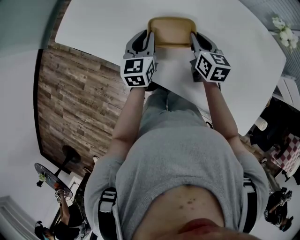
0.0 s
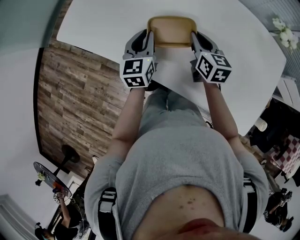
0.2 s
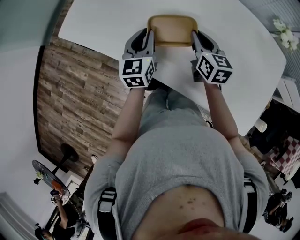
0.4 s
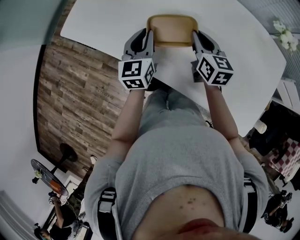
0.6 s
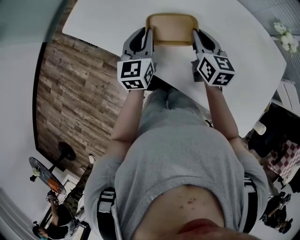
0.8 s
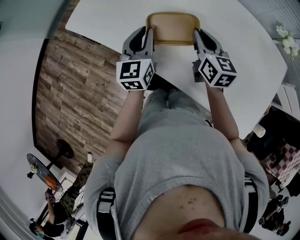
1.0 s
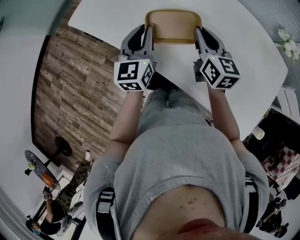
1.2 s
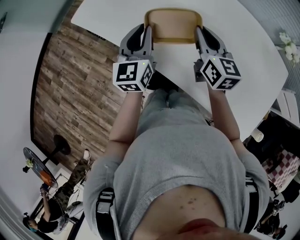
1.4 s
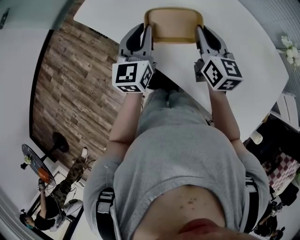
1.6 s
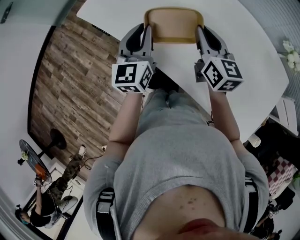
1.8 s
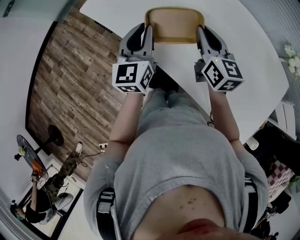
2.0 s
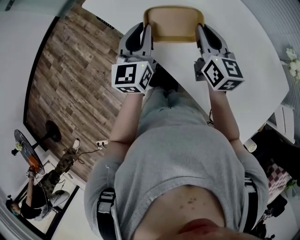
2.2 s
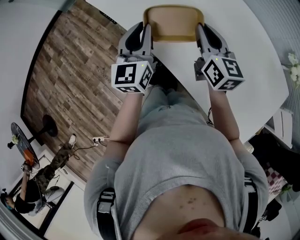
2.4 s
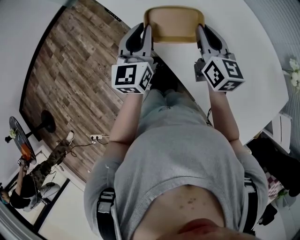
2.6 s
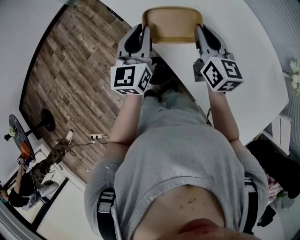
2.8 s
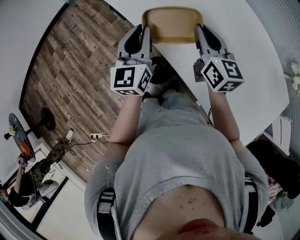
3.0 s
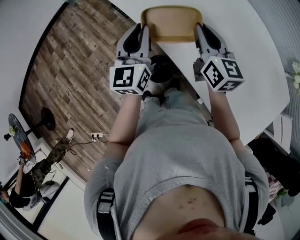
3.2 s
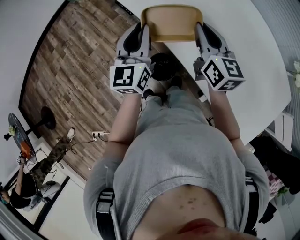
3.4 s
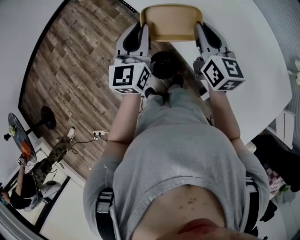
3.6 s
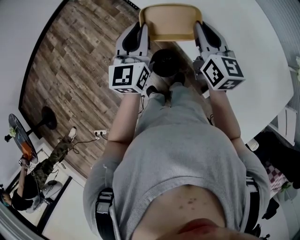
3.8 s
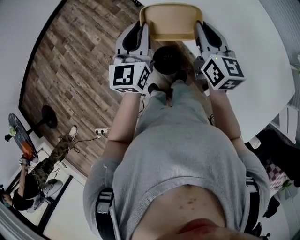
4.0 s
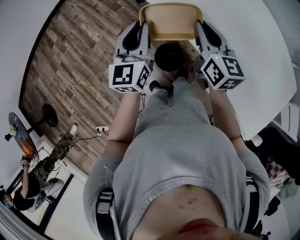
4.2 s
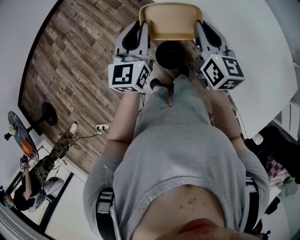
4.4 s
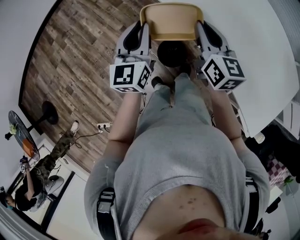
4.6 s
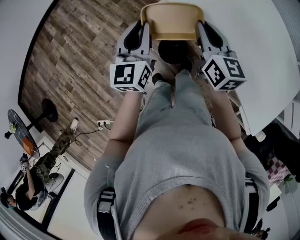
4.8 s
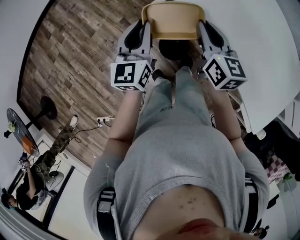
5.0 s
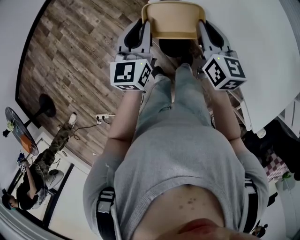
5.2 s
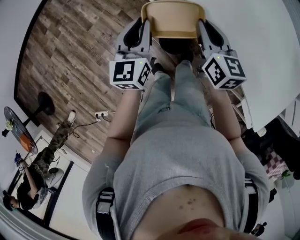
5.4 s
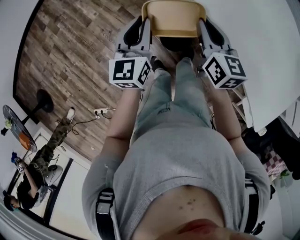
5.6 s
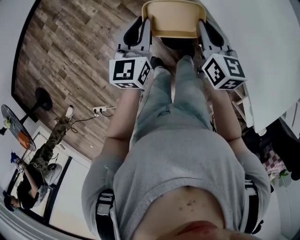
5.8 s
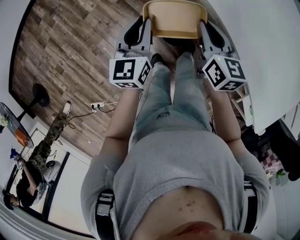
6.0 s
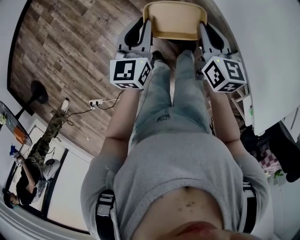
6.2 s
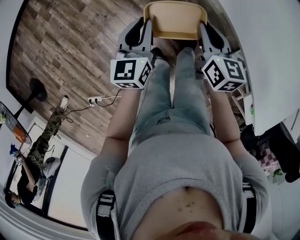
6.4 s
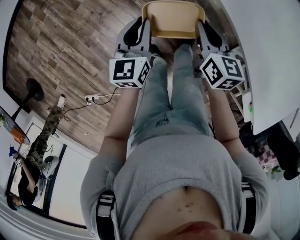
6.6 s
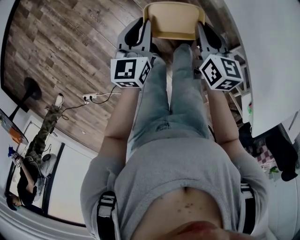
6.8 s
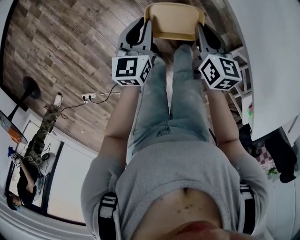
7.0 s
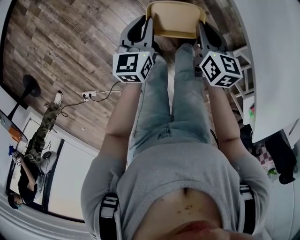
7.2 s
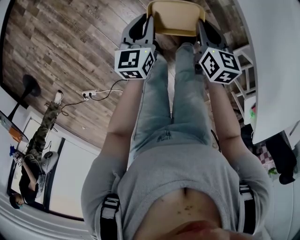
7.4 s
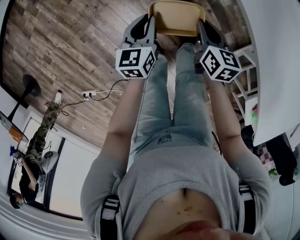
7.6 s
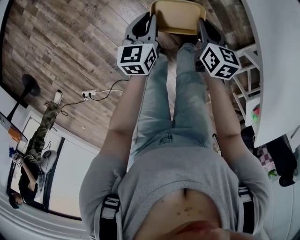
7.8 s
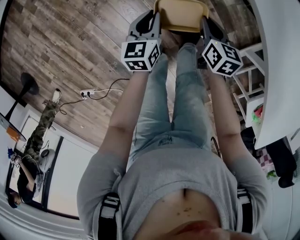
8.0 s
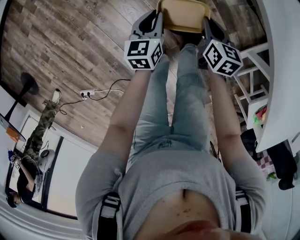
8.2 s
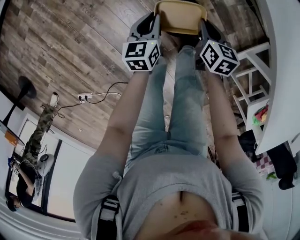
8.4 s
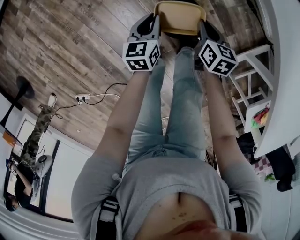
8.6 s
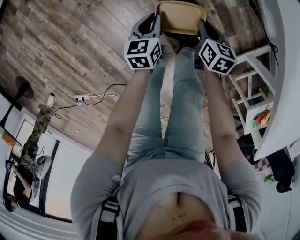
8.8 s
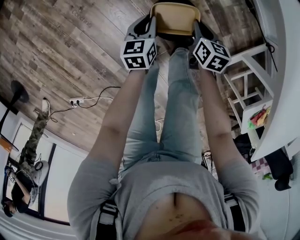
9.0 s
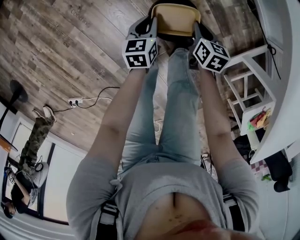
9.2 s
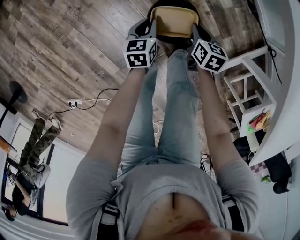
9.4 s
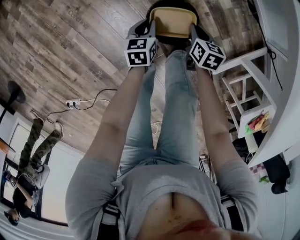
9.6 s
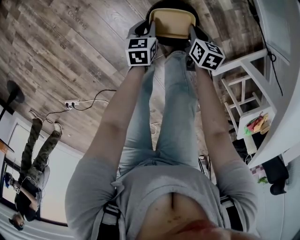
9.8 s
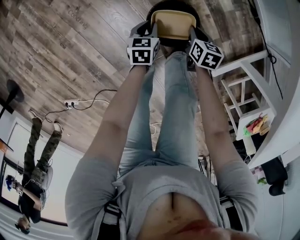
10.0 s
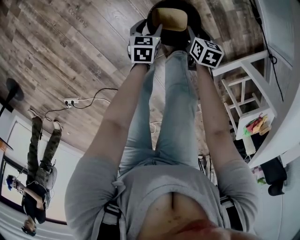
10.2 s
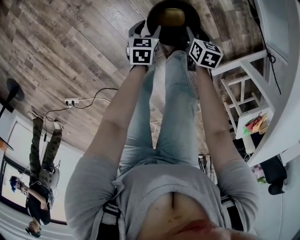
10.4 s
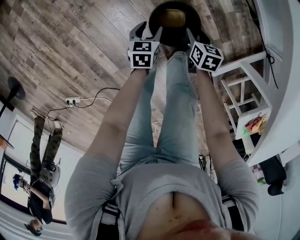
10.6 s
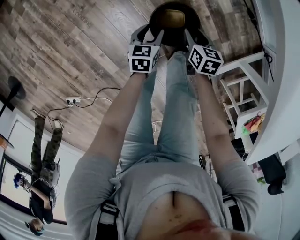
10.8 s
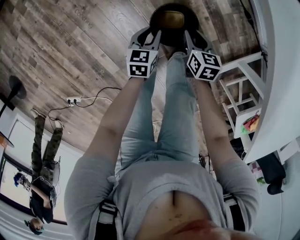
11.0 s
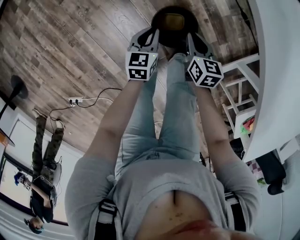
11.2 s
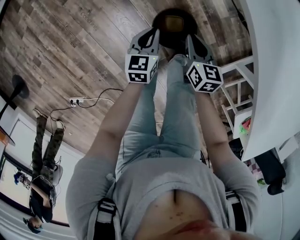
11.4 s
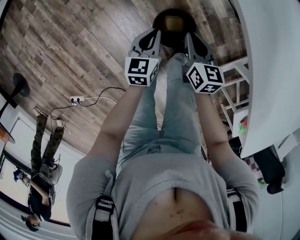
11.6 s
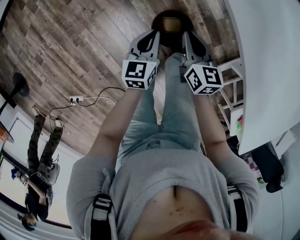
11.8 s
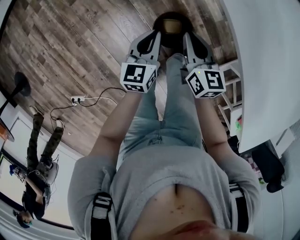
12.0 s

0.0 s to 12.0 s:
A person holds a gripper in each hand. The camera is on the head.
0.0 to 1.6 s: Both grippers move upward and to the left, some 15 cm.
1.6 to 3.0 s: Both grippers travel together to the left, roughly 10 cm.
3.0 to 4.4 s: Both grippers move to the left and backward, roughly 15 cm.
4.4 to 6.0 s: Both grippers move downward, approximately 15 cm.
6.0 to 7.6 s: Both grippers move downward, approximately 20 cm.
7.6 to 9.0 s: Both grippers move downward, approximately 15 cm.
9.0 to 10.4 s: The grippers both shift downward by approximately 10 cm. The left gripper opens up. The right gripper opens its fingers.
10.4 to 12.0 s: The grippers both shift upward by some 30 cm. The right gripper angles its fingers upward, by about 30 degrees, and closes up, while the left gripper swivels approximately 30 degrees, and closes up.

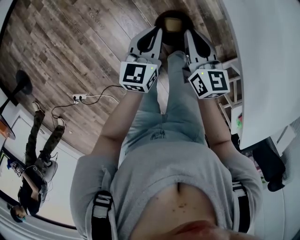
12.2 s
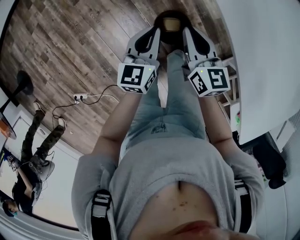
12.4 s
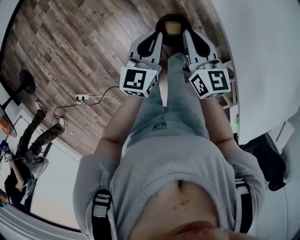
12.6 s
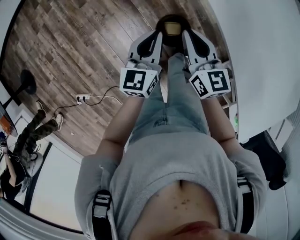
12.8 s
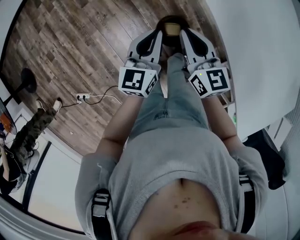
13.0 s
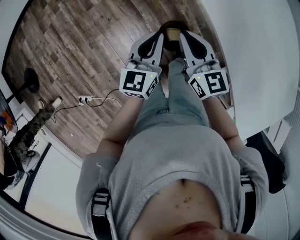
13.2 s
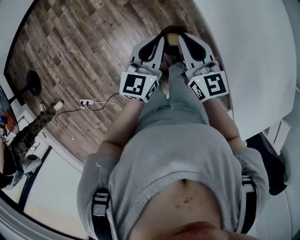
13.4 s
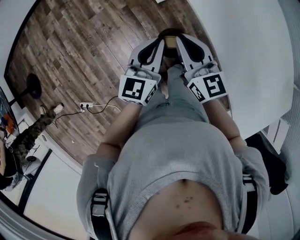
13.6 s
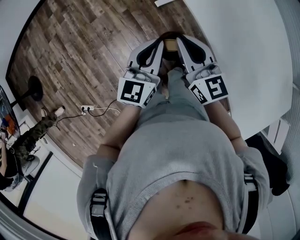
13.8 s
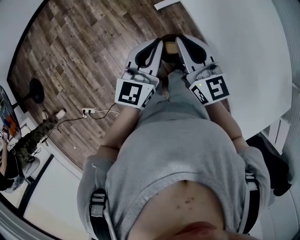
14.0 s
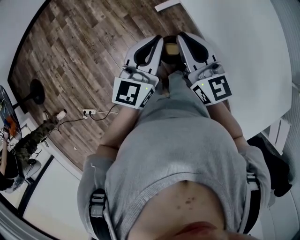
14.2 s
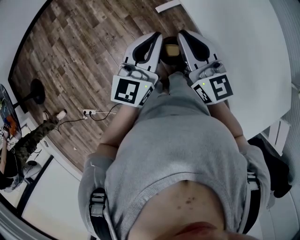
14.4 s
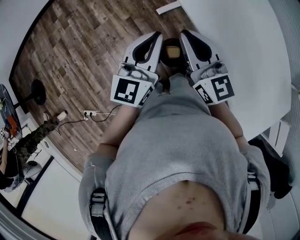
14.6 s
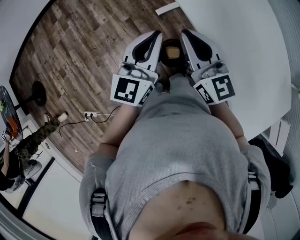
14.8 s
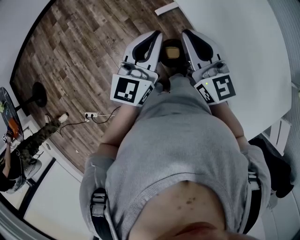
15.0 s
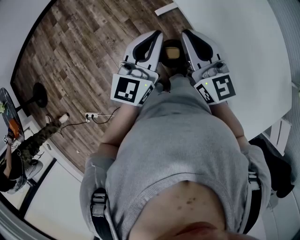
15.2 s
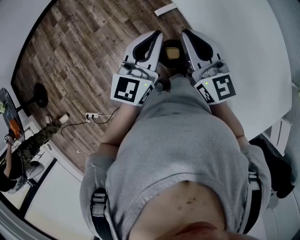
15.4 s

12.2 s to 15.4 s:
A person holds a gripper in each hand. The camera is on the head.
12.2 to 13.8 s: Both grippers move upward, roughly 20 cm. The right gripper changes its angle by roughly 20 degrees.
13.8 to 15.4 s: The grippers both shift upward by about 5 cm.

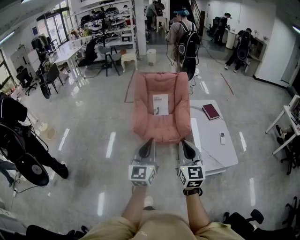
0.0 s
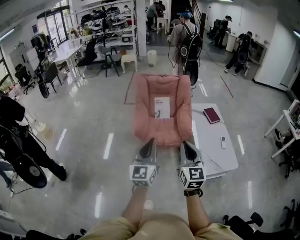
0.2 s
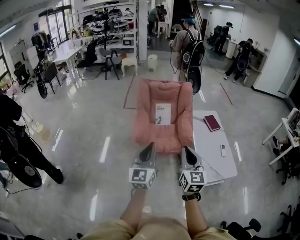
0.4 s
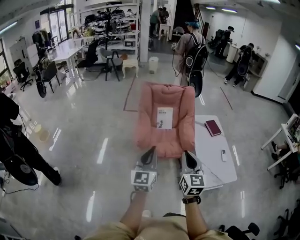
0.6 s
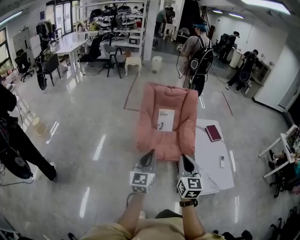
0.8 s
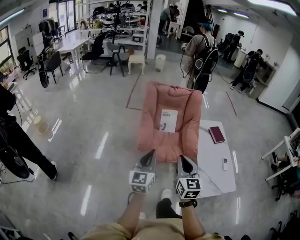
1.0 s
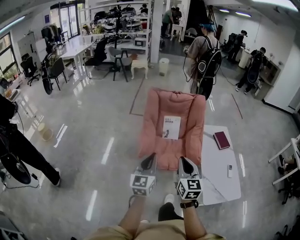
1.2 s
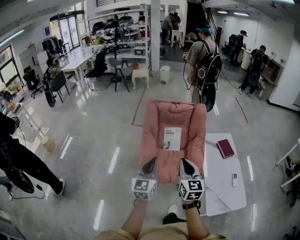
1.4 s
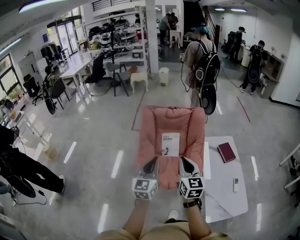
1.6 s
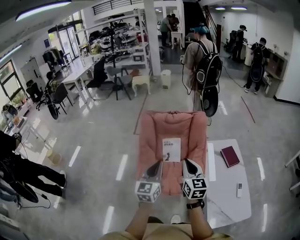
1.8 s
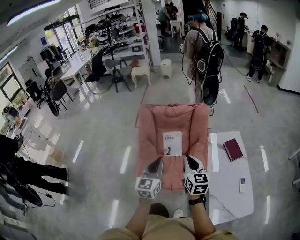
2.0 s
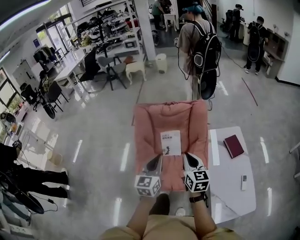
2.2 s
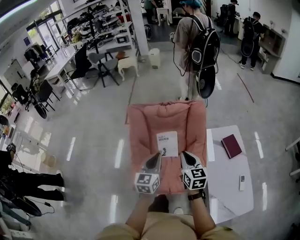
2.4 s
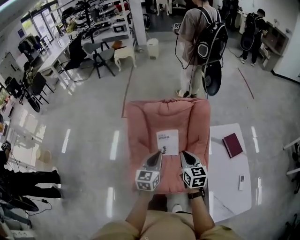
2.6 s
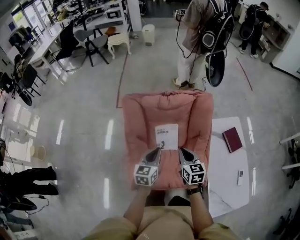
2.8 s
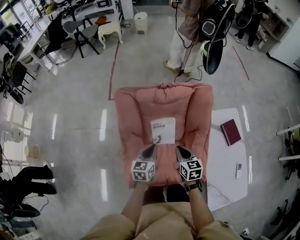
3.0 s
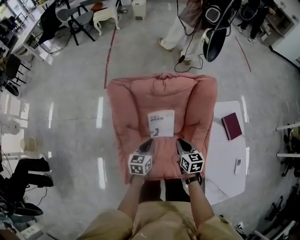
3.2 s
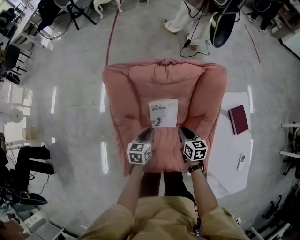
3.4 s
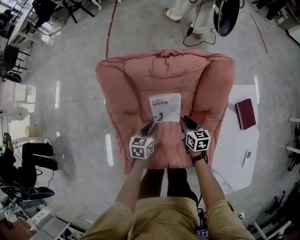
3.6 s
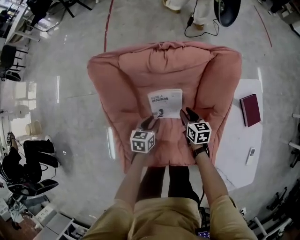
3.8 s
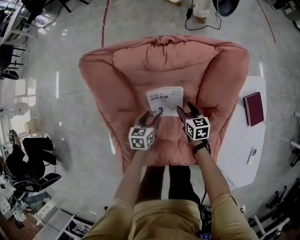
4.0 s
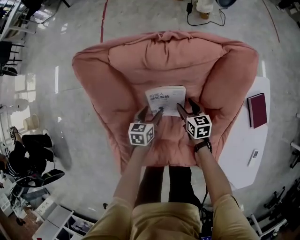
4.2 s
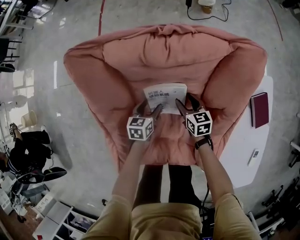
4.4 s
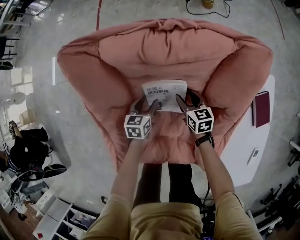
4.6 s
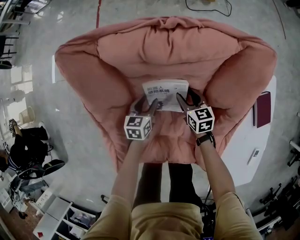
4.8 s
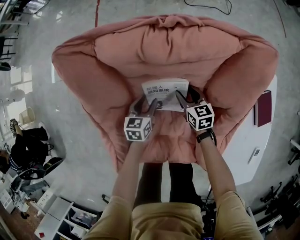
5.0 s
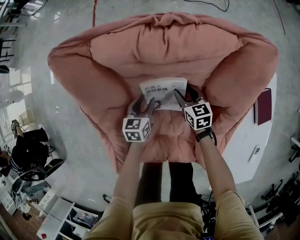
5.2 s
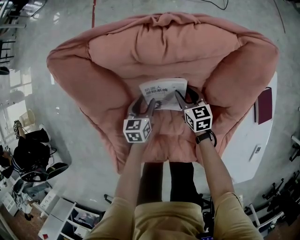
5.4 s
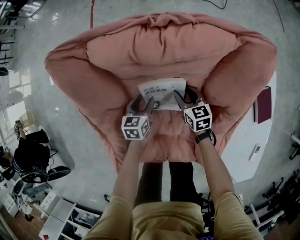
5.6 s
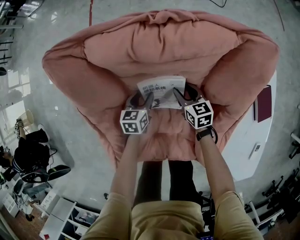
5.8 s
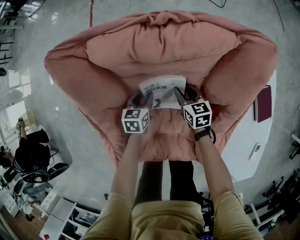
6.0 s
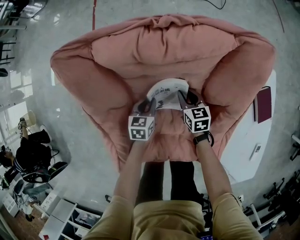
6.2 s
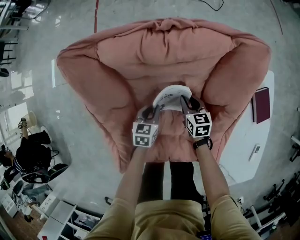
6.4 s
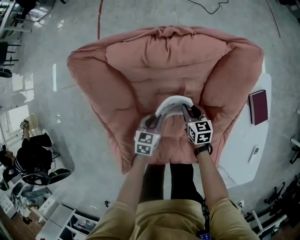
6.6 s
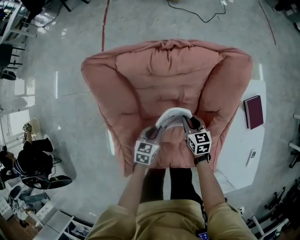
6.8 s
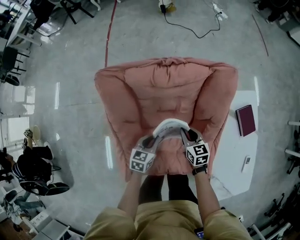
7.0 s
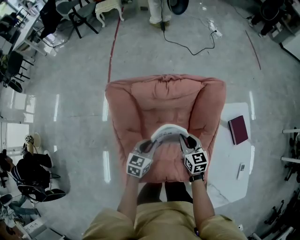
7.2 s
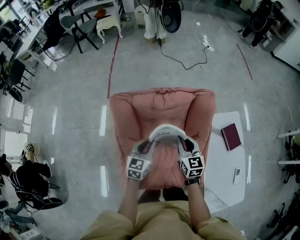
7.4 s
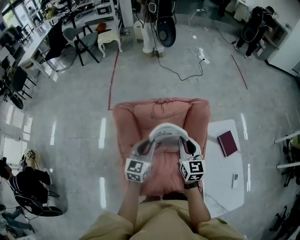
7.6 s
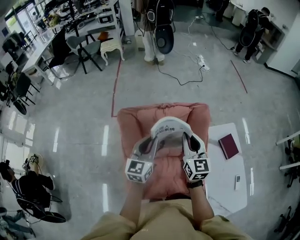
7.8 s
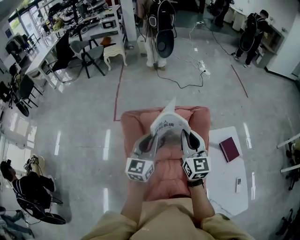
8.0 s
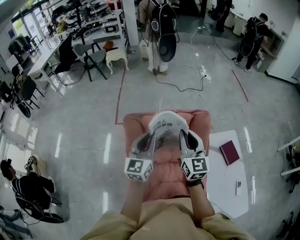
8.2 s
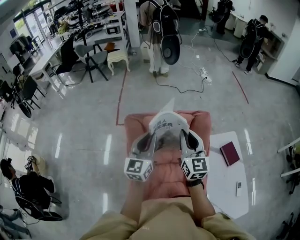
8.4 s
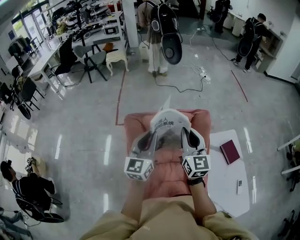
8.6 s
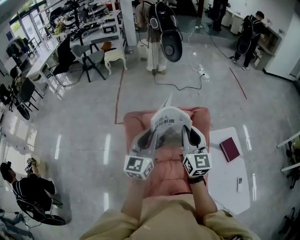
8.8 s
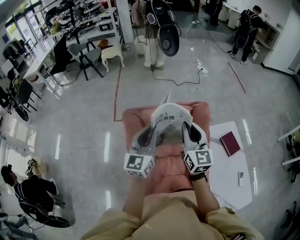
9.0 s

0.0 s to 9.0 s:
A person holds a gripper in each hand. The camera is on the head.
0.0 to 1.6 s: The two grippers go about 40 cm forward.
1.6 to 3.0 s: Both grippers move forward and downward, roughly 50 cm. The left gripper rotates approximately 30 degrees, while the right gripper rotates roughly 30 degrees.
3.0 to 4.4 s: Both grippers move downward and forward, some 35 cm. The right gripper opens its fingers. Meanwhile the left gripper opens.
4.4 to 6.0 s: The left gripper closes its fingers. Meanwhile the right gripper closes up.
6.0 to 7.6 s: Both grippers move upward, some 50 cm. The right gripper swivels roughly 40 degrees. The left gripper points its fingers approximately 30 degrees further upward.
7.6 to 9.0 s: Both grippers move upward, approximately 15 cm. The left gripper changes its angle by some 20 degrees.
